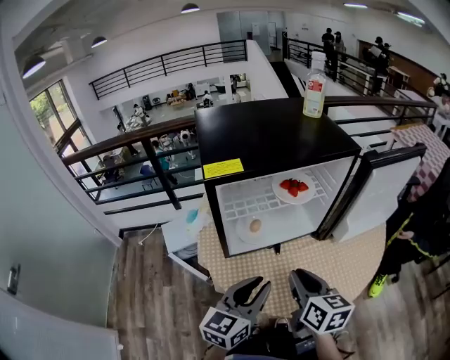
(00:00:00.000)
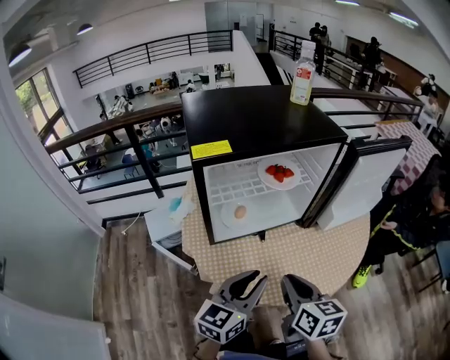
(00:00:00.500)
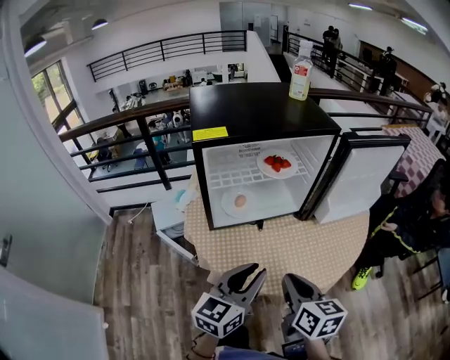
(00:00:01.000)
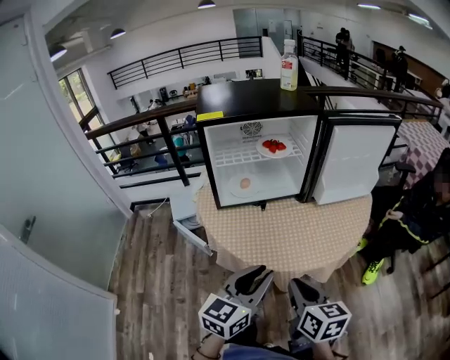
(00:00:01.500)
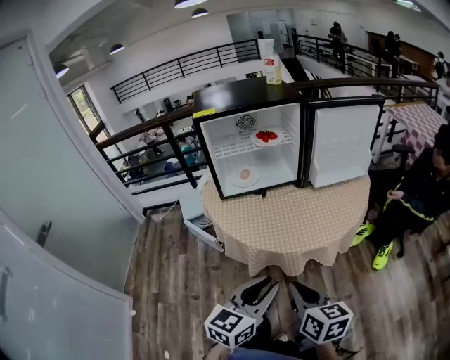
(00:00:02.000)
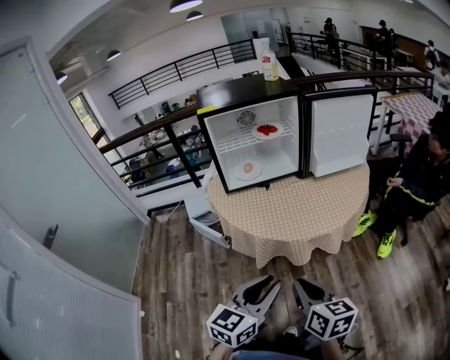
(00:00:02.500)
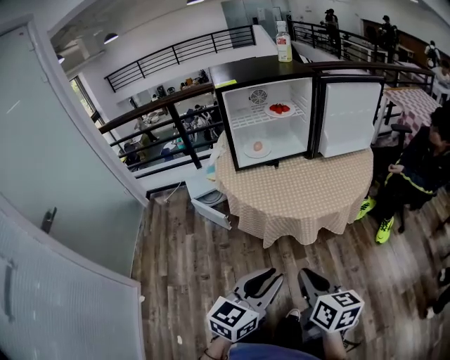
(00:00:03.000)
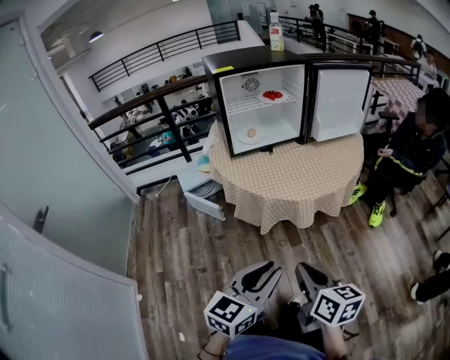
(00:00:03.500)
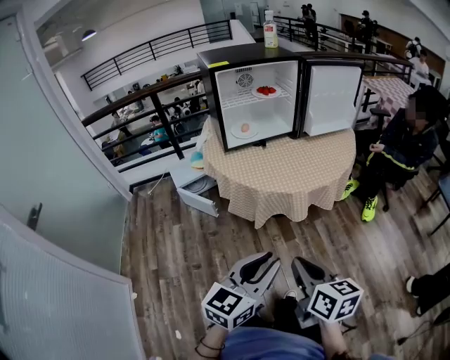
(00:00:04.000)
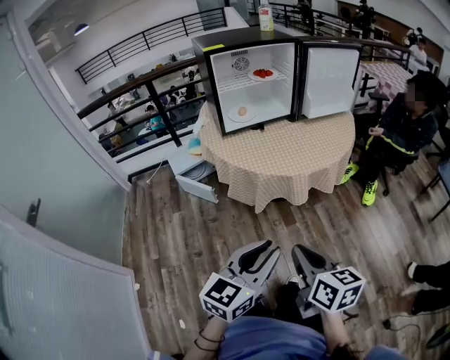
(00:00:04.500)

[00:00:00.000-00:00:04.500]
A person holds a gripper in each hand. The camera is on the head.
00:00:00.000 to 00:00:02.000: Both grippers travel together backward and to the right, some 35 cm.
00:00:02.000 to 00:00:04.500: Both grippers move backward and to the left, approximately 20 cm.

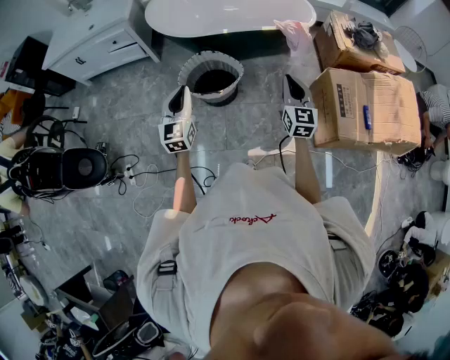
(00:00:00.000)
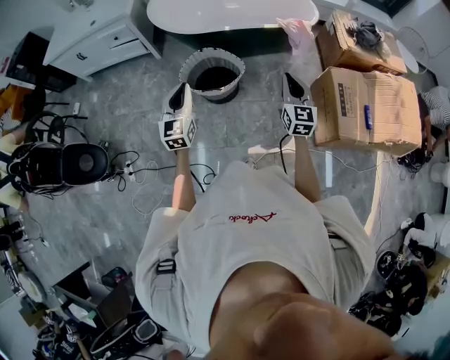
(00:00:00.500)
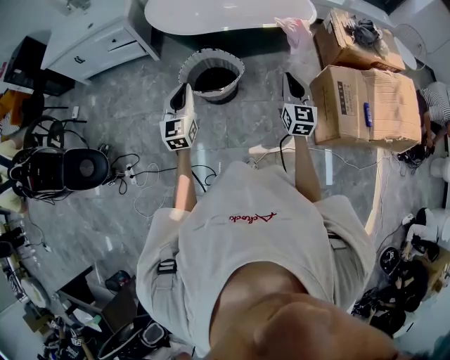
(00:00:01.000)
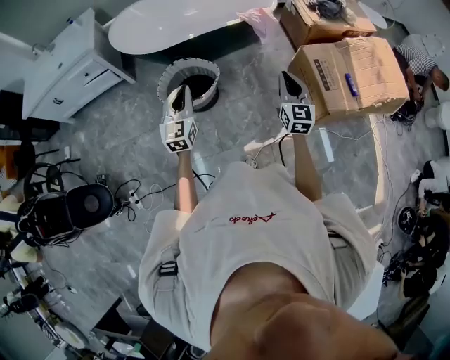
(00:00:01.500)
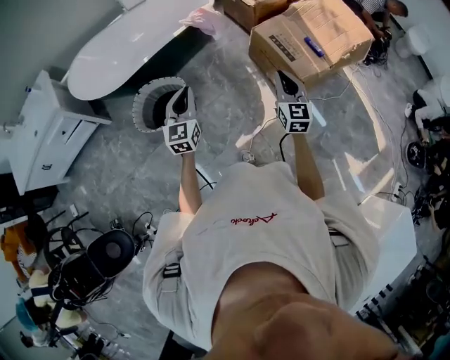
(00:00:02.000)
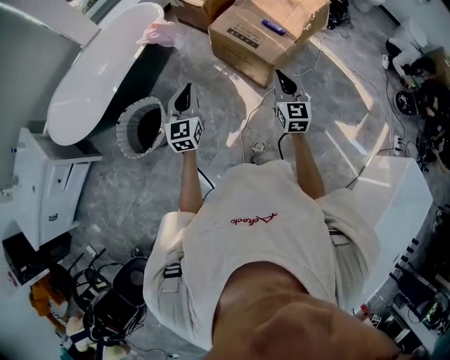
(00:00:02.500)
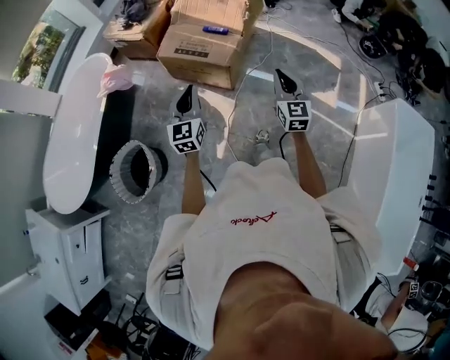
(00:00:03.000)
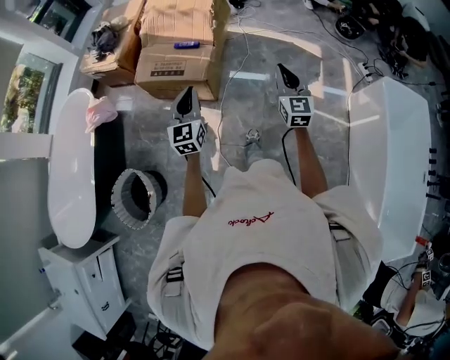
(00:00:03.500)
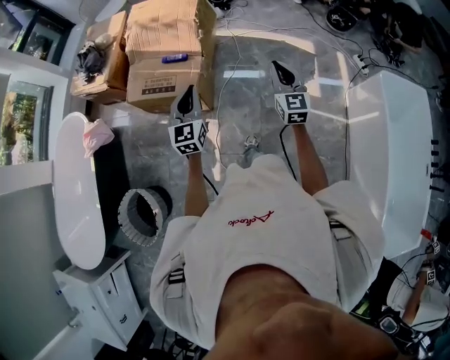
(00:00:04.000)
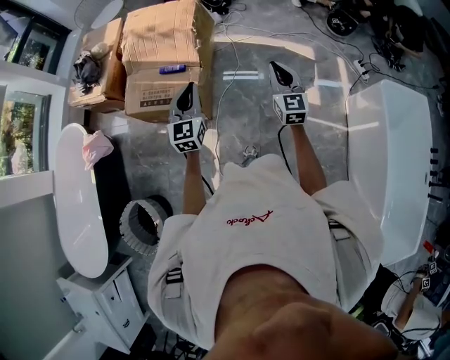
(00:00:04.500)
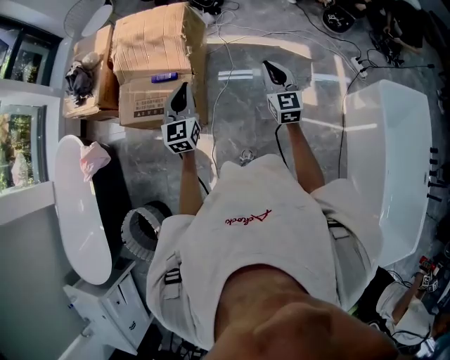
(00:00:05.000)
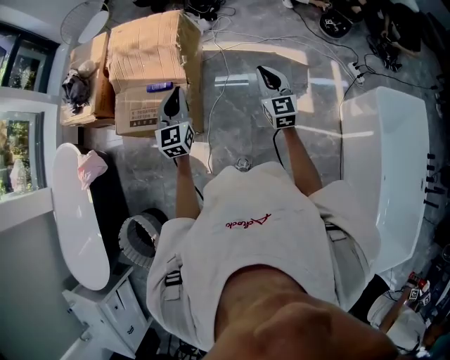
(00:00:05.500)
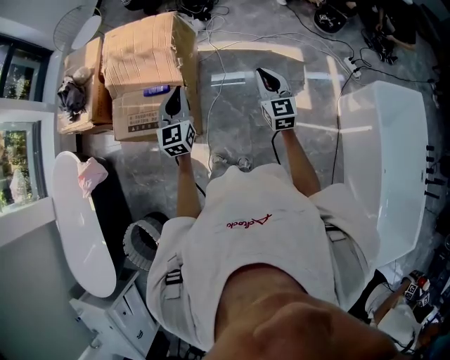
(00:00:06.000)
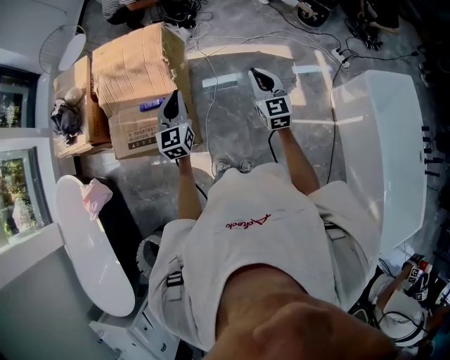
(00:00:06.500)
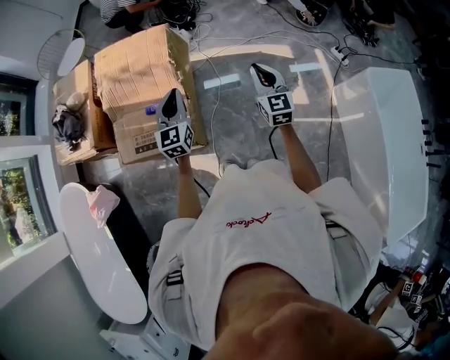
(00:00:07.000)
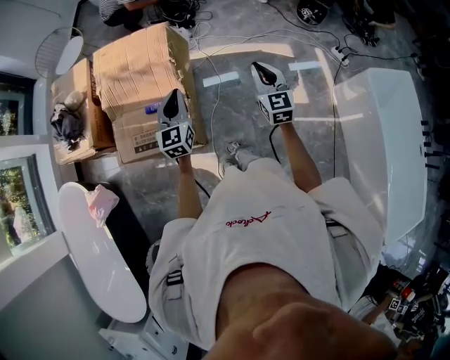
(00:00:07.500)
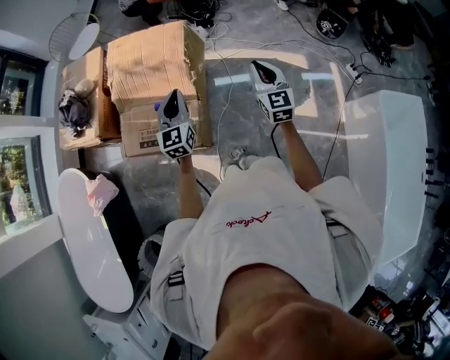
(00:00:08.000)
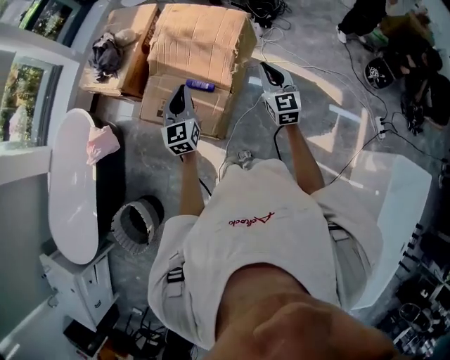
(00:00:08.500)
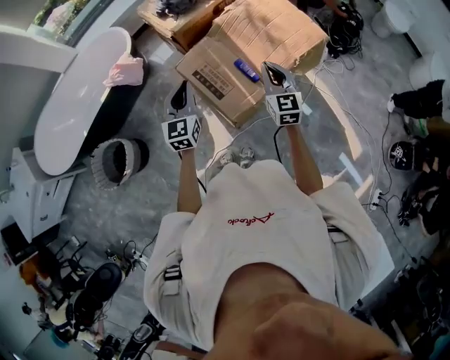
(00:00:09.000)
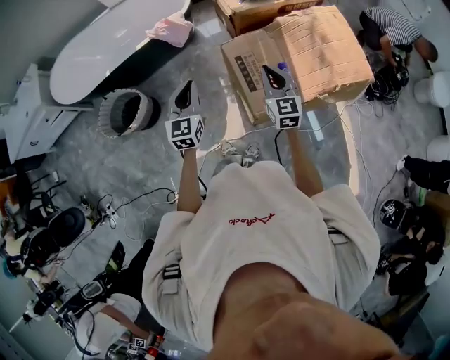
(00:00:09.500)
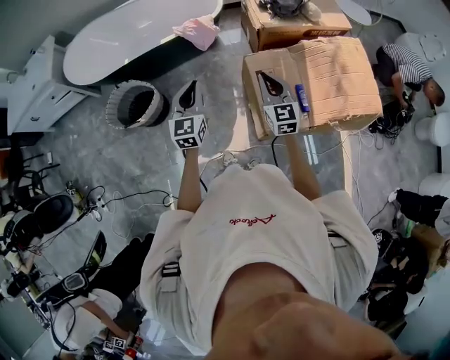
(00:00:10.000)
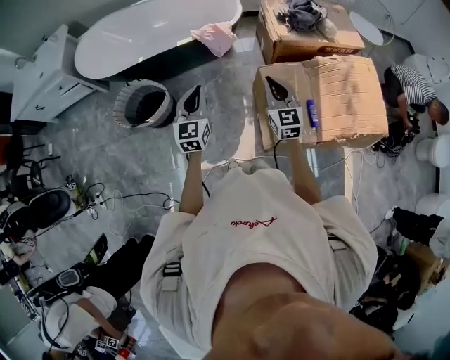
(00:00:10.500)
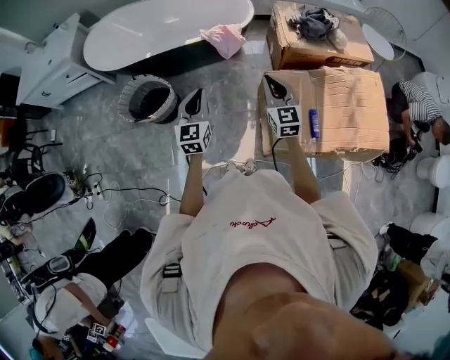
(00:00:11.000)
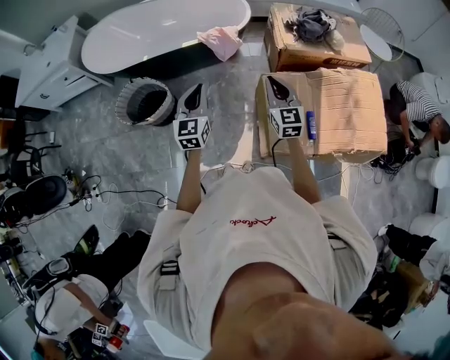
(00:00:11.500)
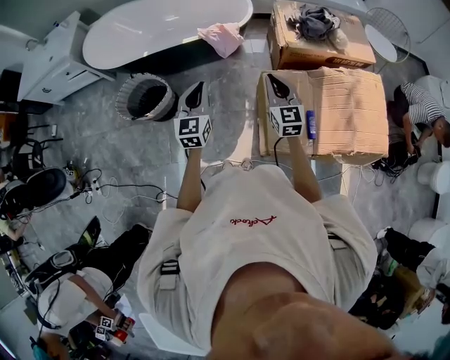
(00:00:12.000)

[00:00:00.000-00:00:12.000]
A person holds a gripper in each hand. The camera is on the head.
00:00:00.000 to 00:00:02.000: The left gripper ends up roughly 20 cm from where it was, and turns by approximately 30 degrees. Meanwhile the right gripper shifts by approximately 15 cm, and rotates roughly 30 degrees.
00:00:02.000 to 00:00:04.000: The pair of grippers is taken roughly 50 cm. The right gripper rotates some 50 degrees, while the left gripper turns by approximately 50 degrees.
00:00:04.000 to 00:00:06.000: Both grippers travel together forward, roughly 20 cm.
00:00:06.000 to 00:00:08.000: The right gripper shifts about 15 cm forward and to the left, while the left gripper moves to the left and forward, approximately 15 cm.
00:00:08.000 to 00:00:10.000: The pair of grippers is taken roughly 50 cm. The right gripper changes its angle by roughly 80 degrees. Meanwhile the left gripper swivels roughly 70 degrees.
00:00:10.000 to 00:00:12.000: The right gripper is displaced forward by approximately 10 cm.

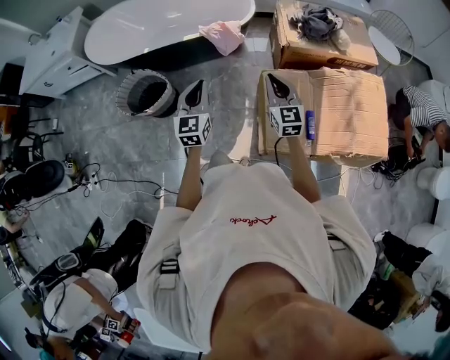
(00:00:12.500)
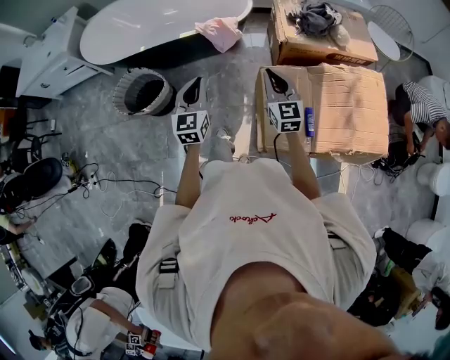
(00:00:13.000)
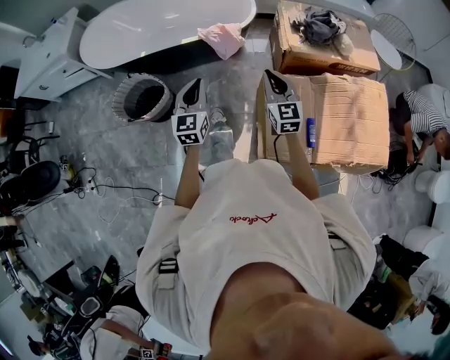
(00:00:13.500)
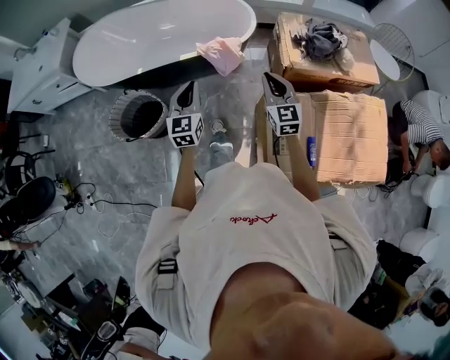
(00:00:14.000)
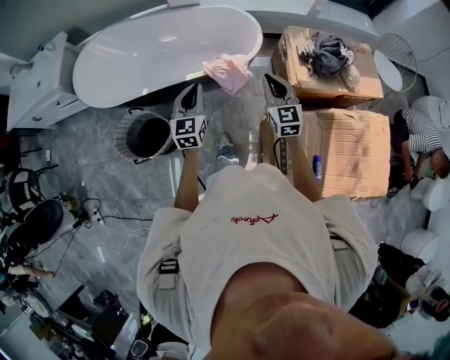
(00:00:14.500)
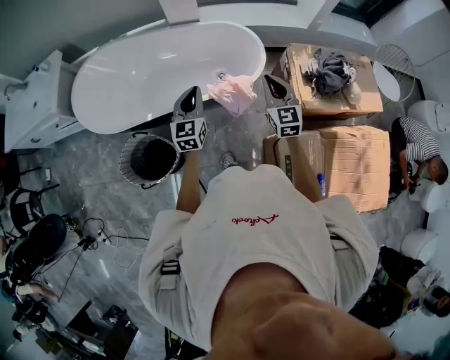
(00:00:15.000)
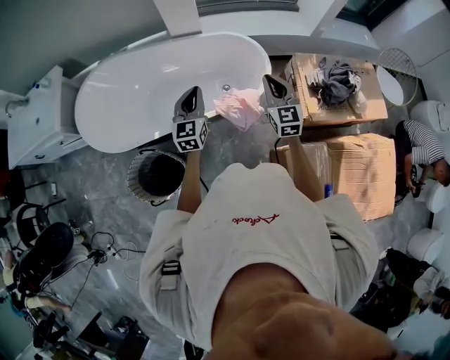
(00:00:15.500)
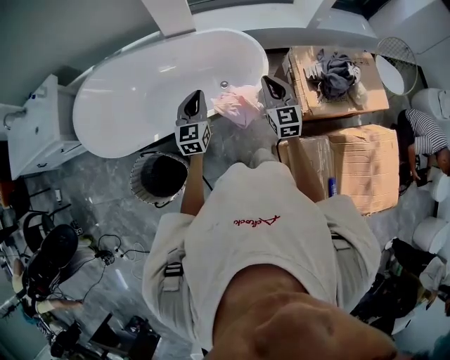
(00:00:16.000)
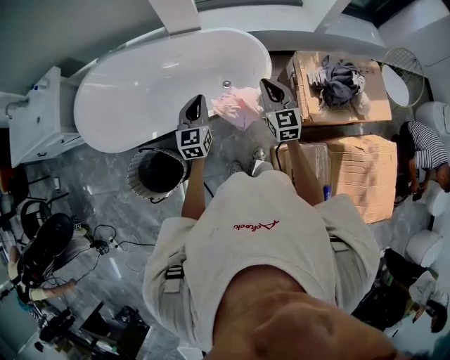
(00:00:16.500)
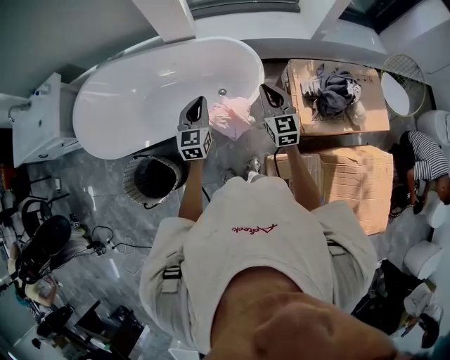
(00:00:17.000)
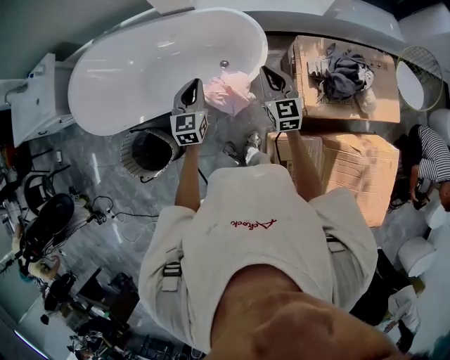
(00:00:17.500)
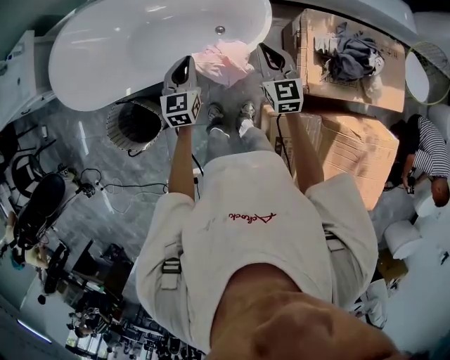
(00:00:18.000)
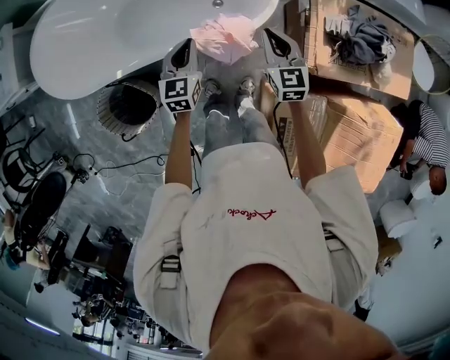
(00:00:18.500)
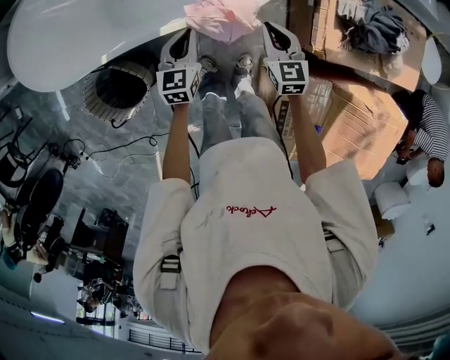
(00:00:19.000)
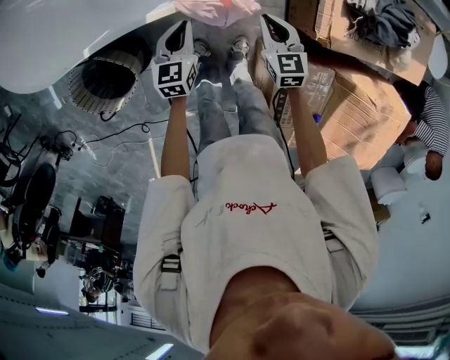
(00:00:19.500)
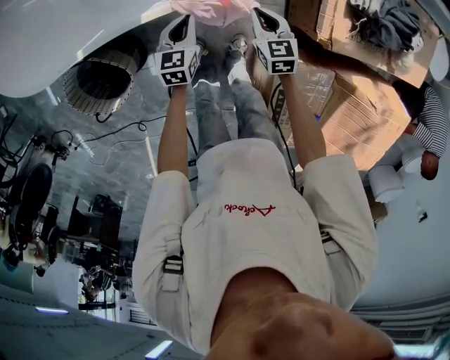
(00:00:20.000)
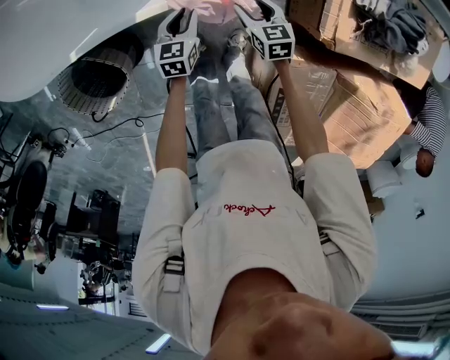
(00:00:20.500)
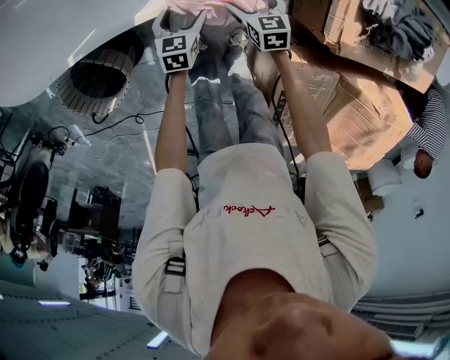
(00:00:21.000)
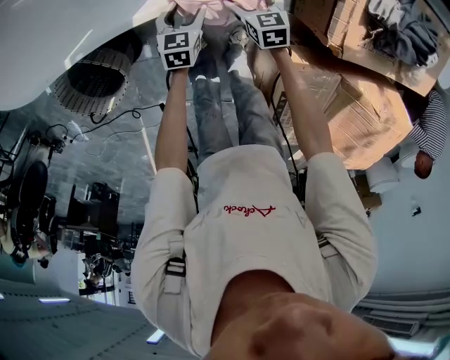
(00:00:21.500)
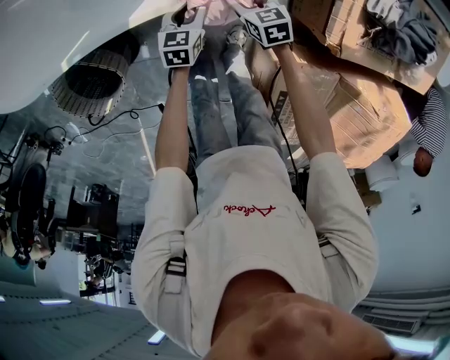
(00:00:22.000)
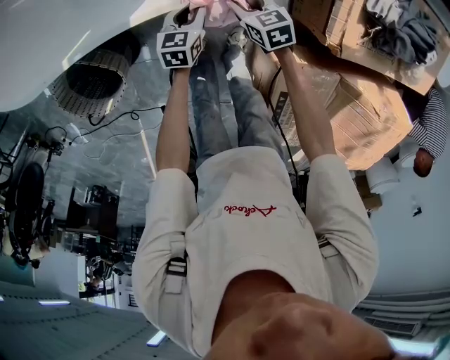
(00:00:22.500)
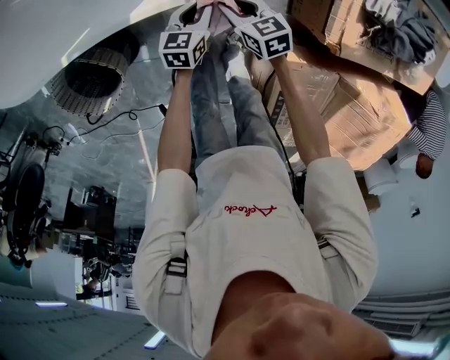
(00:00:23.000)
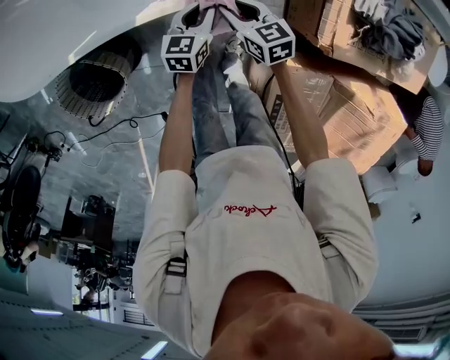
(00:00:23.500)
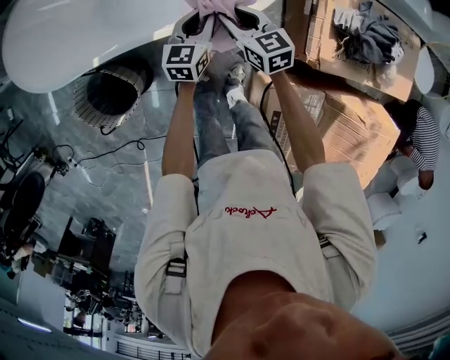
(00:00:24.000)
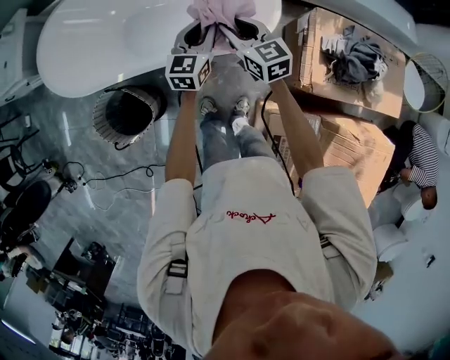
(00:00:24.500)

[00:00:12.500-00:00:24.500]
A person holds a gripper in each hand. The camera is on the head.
00:00:12.500 to 00:00:14.500: The grippers both shift forward by about 30 cm.
00:00:14.500 to 00:00:16.500: The two grippers go roughly 25 cm forward.
00:00:16.500 to 00:00:18.500: Both grippers travel together downward, roughly 15 cm.
00:00:18.500 to 00:00:20.500: The two grippers go some 25 cm downward. The right gripper turns by about 30 degrees, and opens its fingers.
00:00:20.500 to 00:00:22.500: The right gripper ends up about 5 cm from where it was, and opens and closes again. Meanwhile the left gripper travels downward by some 5 cm, and opens, then closes once more.
00:00:22.500 to 00:00:24.500: The grippers both shift upward by approximately 35 cm. The left gripper turns by about 30 degrees. The right gripper turns by approximately 30 degrees.
